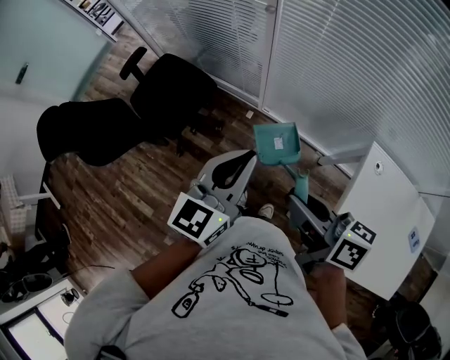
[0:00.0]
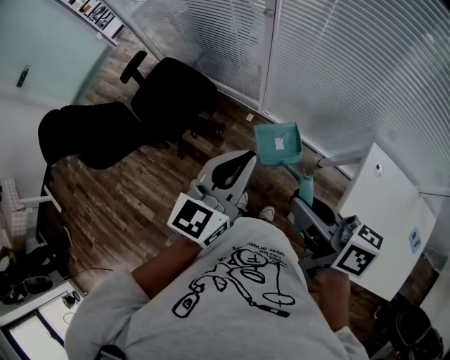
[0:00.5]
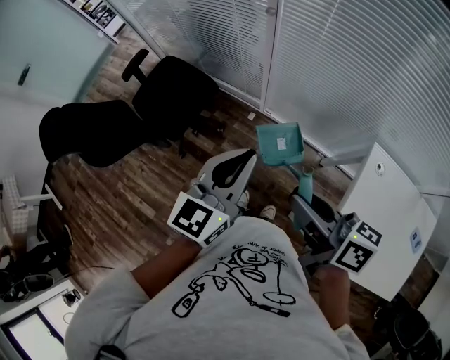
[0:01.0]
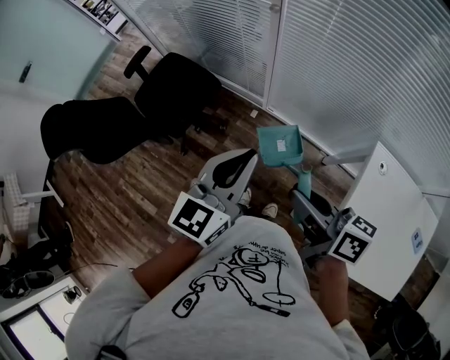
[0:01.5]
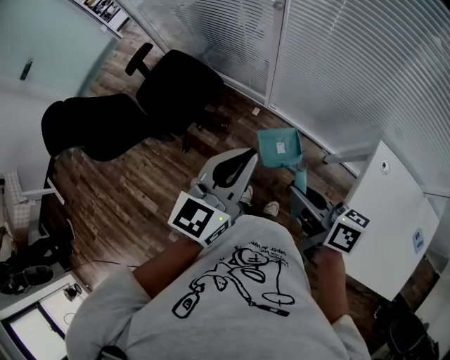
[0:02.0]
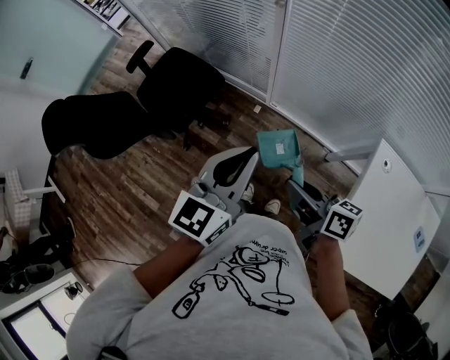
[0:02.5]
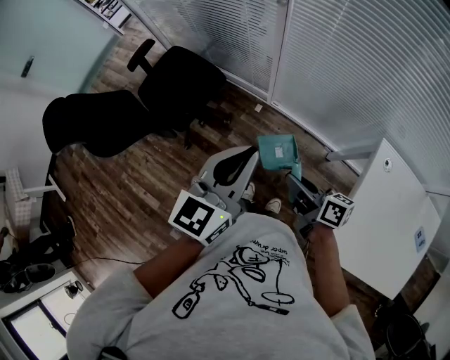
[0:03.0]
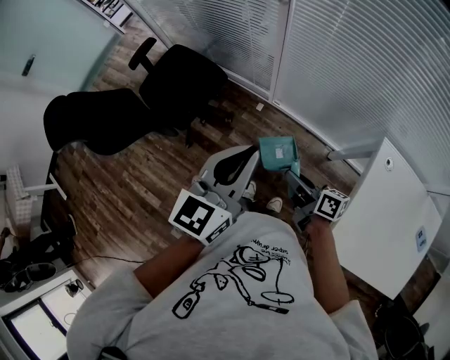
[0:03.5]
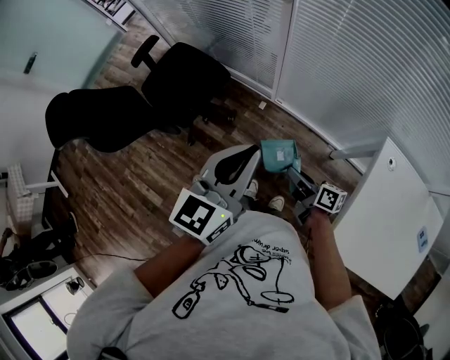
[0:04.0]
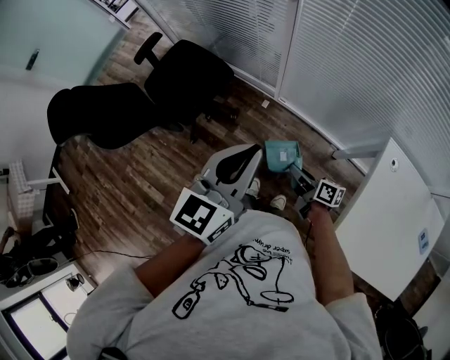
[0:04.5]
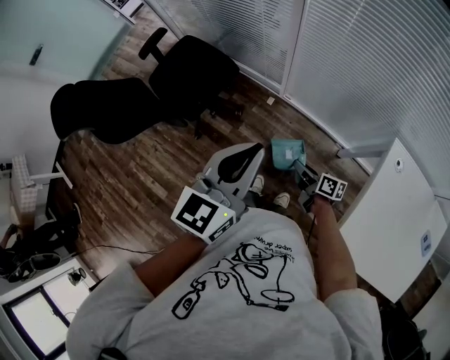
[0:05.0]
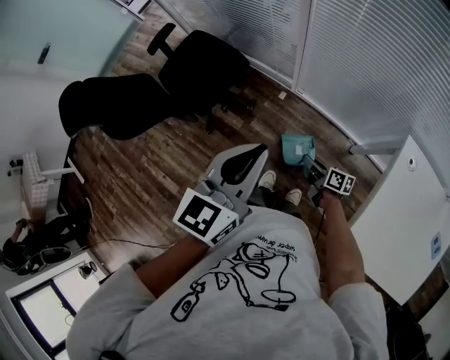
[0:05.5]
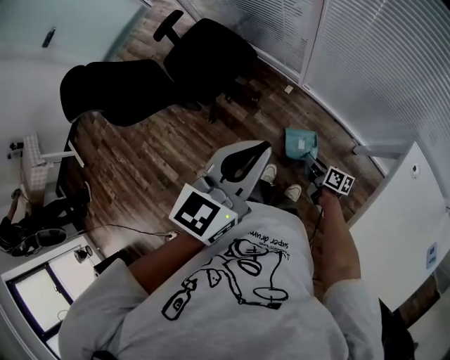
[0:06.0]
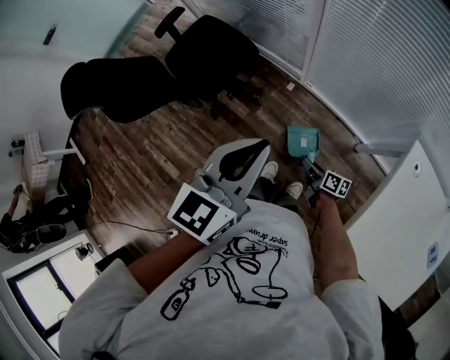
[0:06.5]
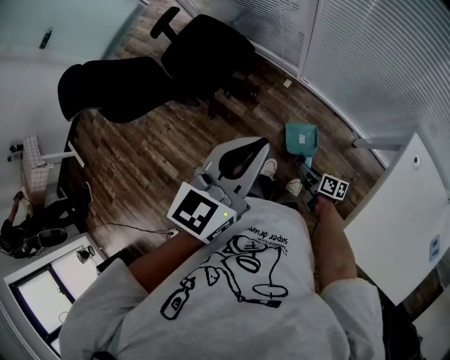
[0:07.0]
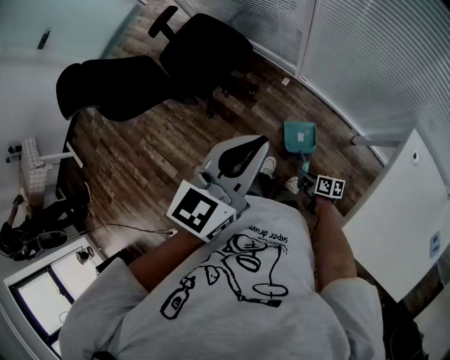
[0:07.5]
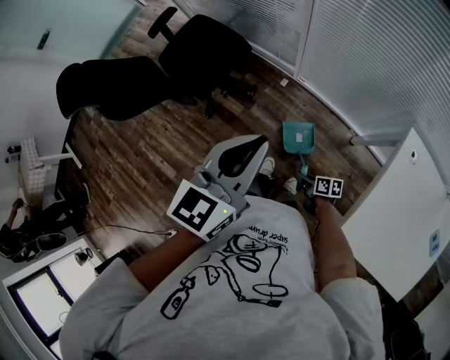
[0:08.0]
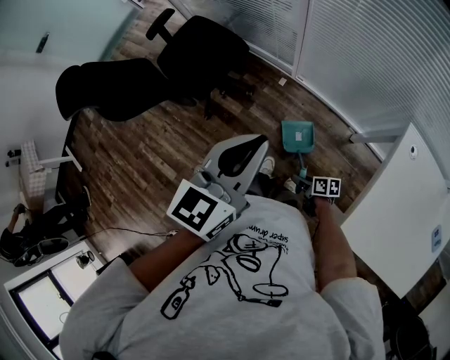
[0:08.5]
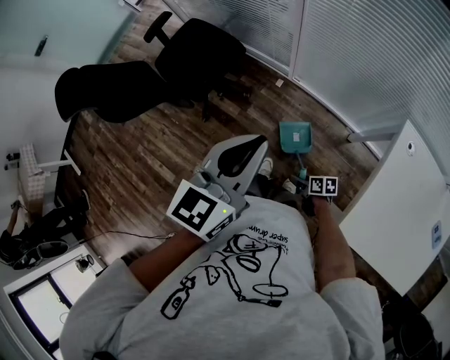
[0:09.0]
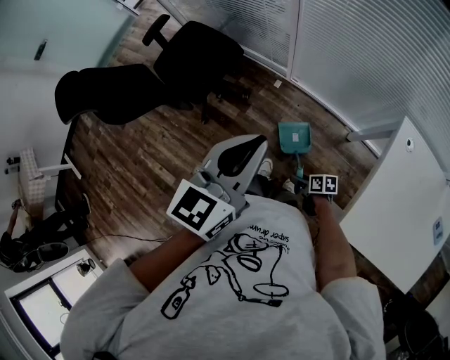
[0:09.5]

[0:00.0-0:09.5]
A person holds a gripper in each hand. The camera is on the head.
0:00.0 to 0:02.0: The right gripper travels downward by some 5 cm.
0:02.0 to 0:04.0: The right gripper goes approximately 20 cm downward.
0:04.0 to 0:05.5: The right gripper moves downward, about 10 cm.
0:05.5 to 0:07.5: The right gripper heads backward and downward, covering roughly 15 cm.
0:07.5 to 0:09.5: The right gripper shifts some 5 cm backward, and opens.

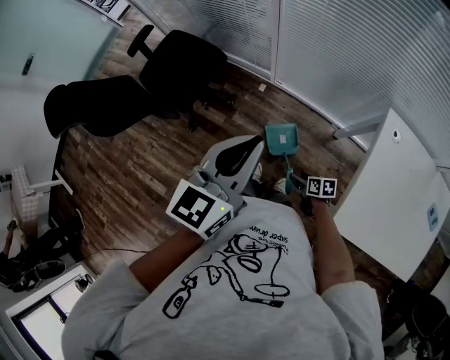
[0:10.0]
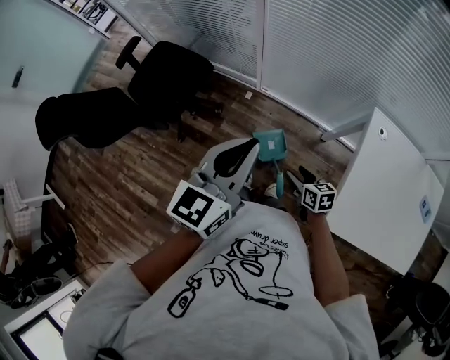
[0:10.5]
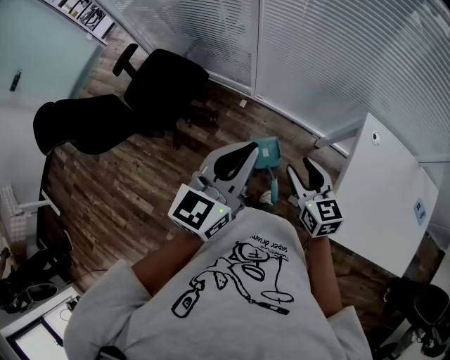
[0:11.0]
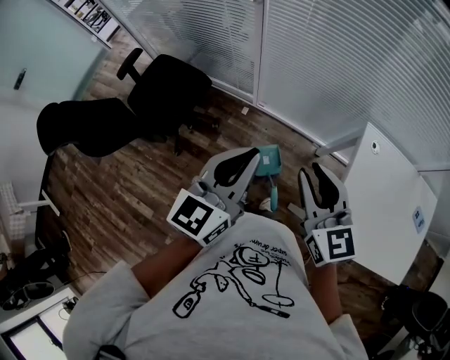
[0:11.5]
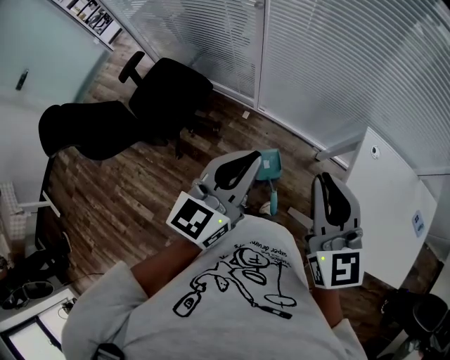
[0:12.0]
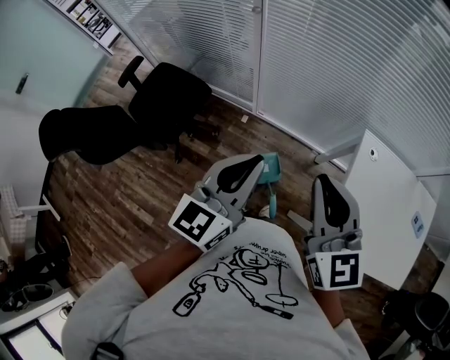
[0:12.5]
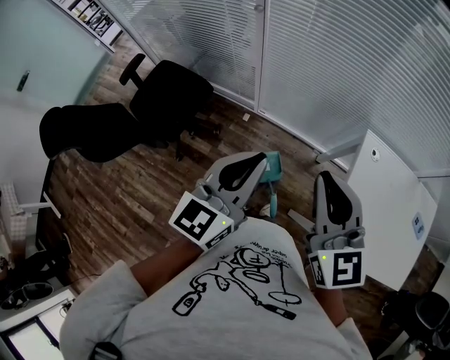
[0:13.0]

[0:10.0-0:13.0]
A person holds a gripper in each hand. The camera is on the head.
0:10.0 to 0:11.5: The right gripper moves upward, approximately 40 cm, tips its fingers upward by approximately 30 degrees, and closes its fingers.
0:11.5 to 0:13.0: The right gripper shifts about 10 cm upward, and closes its fingers.

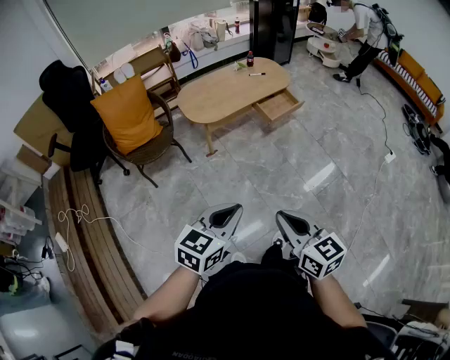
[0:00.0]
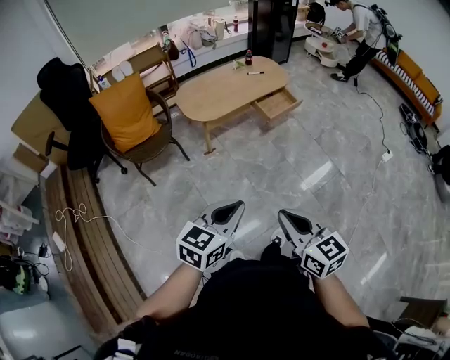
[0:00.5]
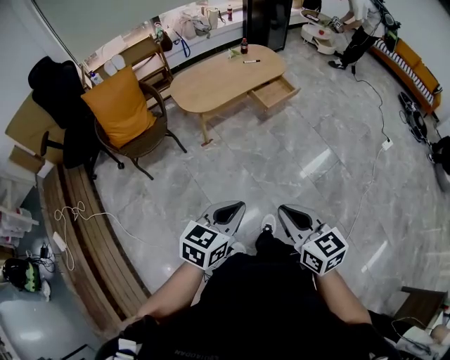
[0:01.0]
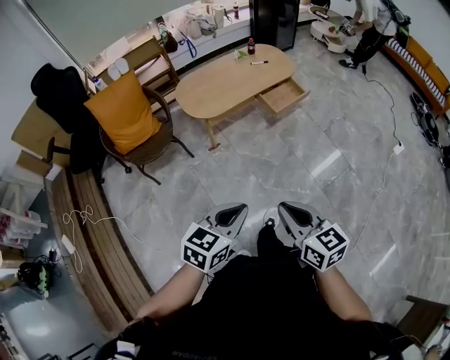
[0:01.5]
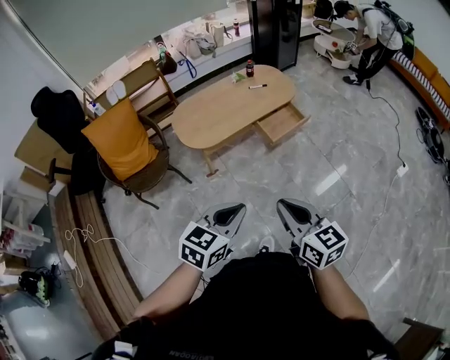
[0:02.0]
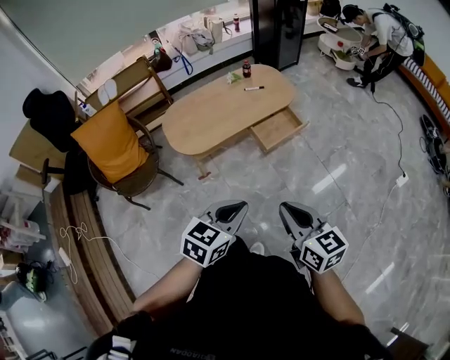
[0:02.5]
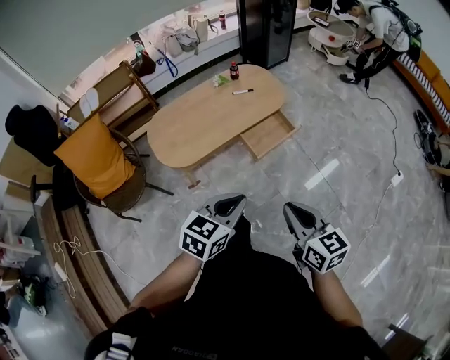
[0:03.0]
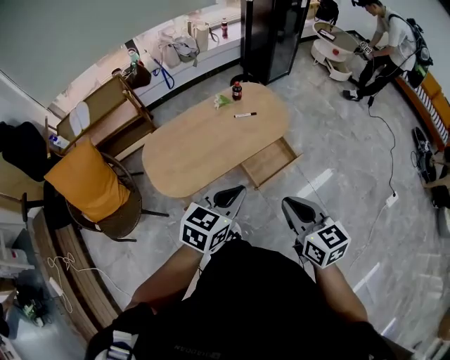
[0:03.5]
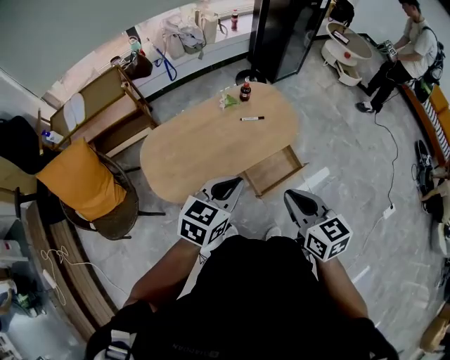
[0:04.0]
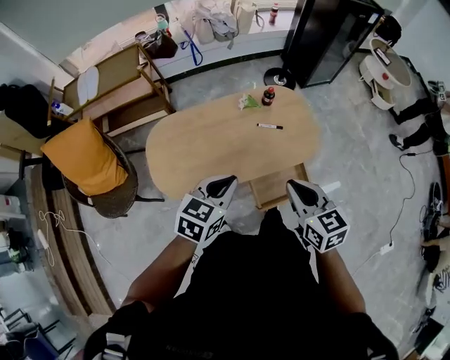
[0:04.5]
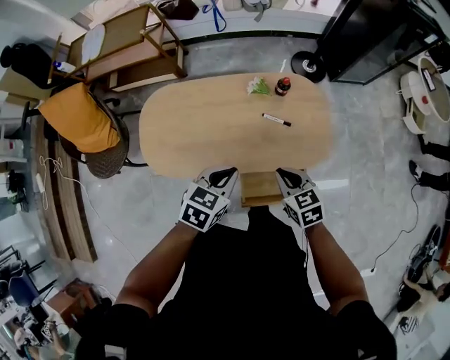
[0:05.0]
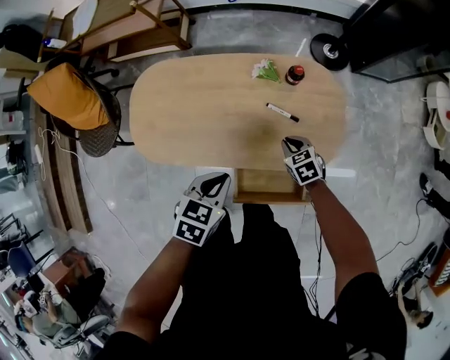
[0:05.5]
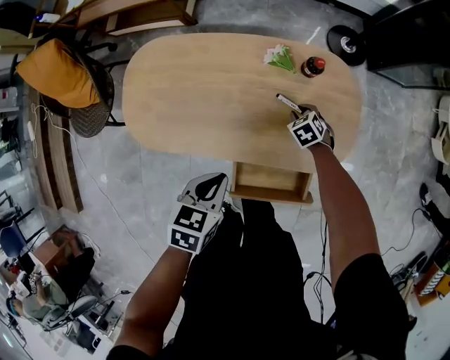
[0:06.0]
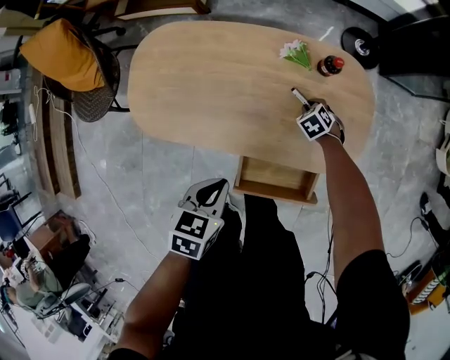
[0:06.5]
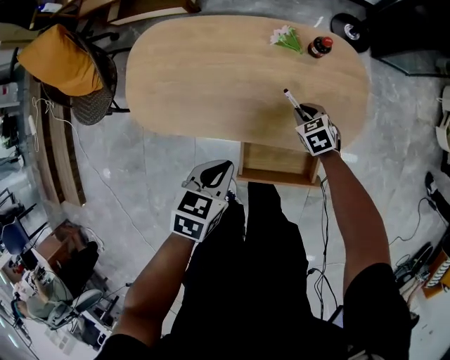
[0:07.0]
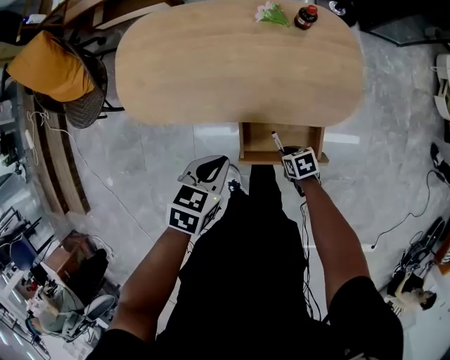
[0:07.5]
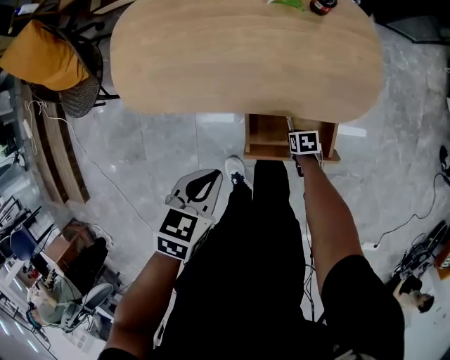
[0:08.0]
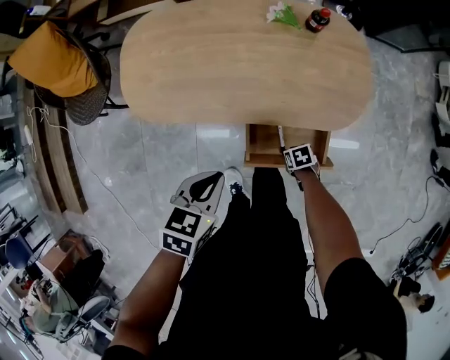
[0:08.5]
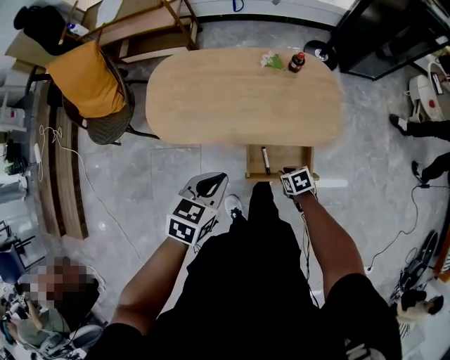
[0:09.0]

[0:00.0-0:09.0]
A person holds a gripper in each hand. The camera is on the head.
0:00.0 to 0:02.0: The grippers both shift forward by roughly 25 cm.
0:02.0 to 0:04.5: The pair of grippers is taken forward, approximately 60 cm.
0:04.5 to 0:07.0: The right gripper is displaced downward by some 40 cm, and points its fingers approximately 30 degrees further downward. The left gripper moves downward, about 25 cm, and turns by some 40 degrees.
0:07.0 to 0:09.0: The left gripper moves upward, roughly 15 cm, while the right gripper goes downward and returns, about 20 cm each way, and swivels about 20 degrees.

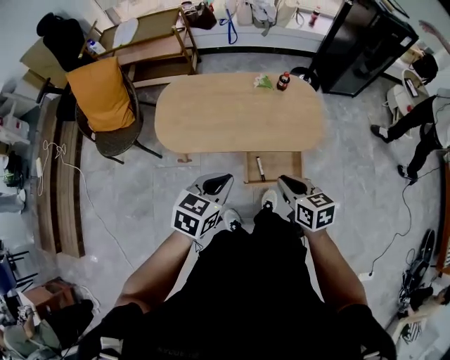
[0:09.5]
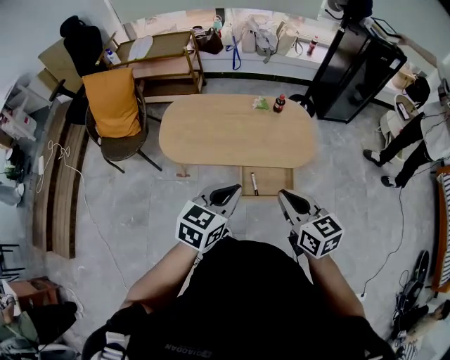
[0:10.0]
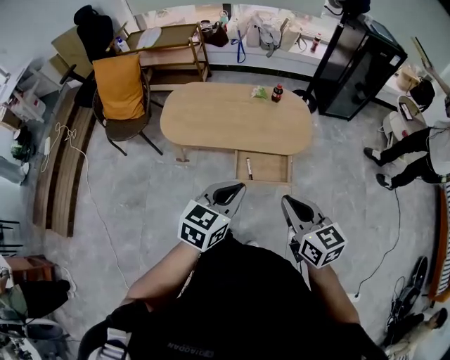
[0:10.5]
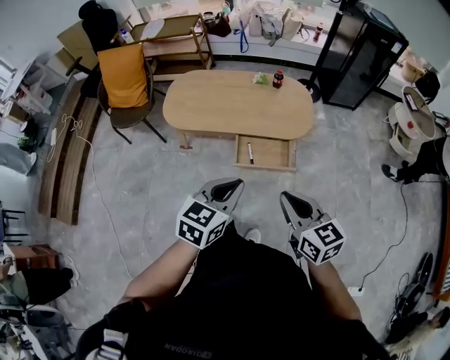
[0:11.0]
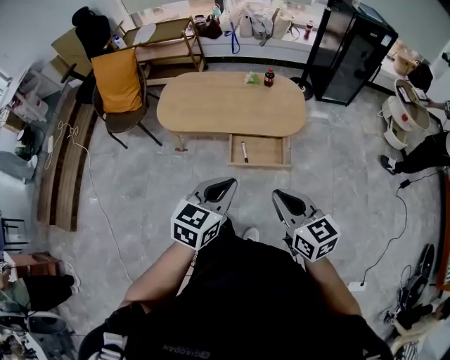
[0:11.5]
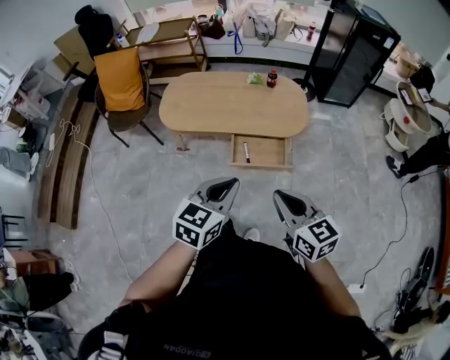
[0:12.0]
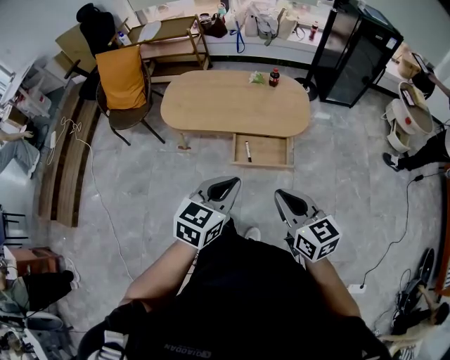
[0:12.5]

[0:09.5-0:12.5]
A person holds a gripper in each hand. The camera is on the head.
0:09.5 to 0:11.0: The right gripper shifts roughly 30 cm backward, upward and to the right, and turns by approximately 20 degrees; the left gripper goes about 25 cm backward and to the right.
0:11.0 to 0:12.5: The grippers move only a little.

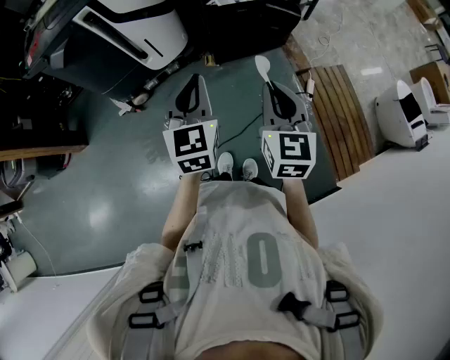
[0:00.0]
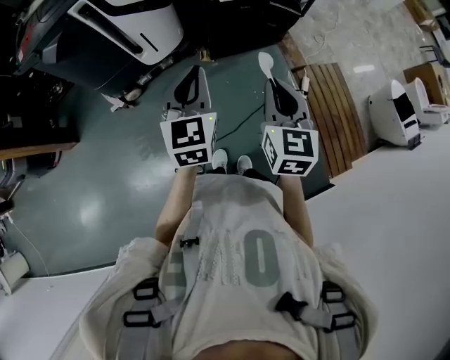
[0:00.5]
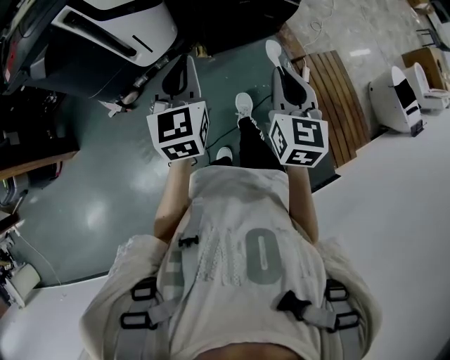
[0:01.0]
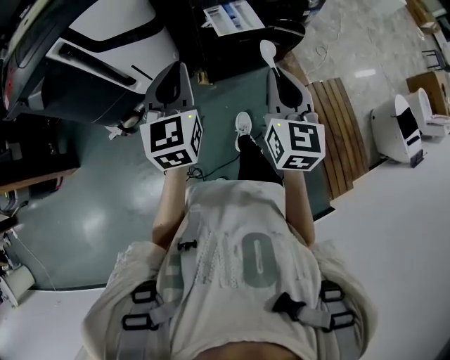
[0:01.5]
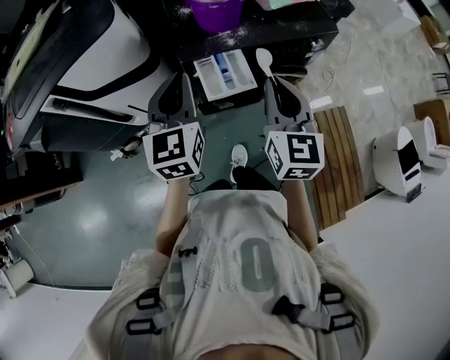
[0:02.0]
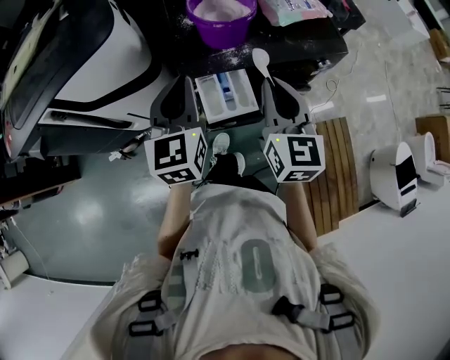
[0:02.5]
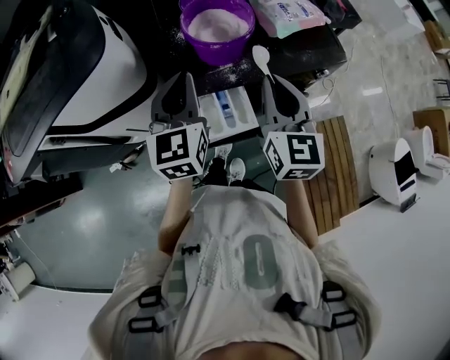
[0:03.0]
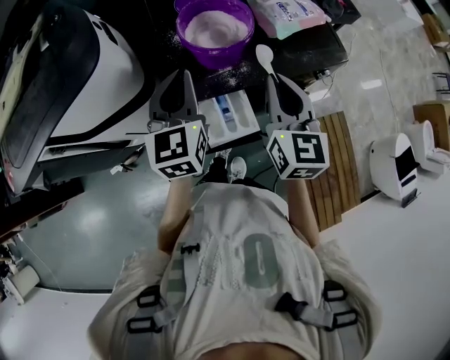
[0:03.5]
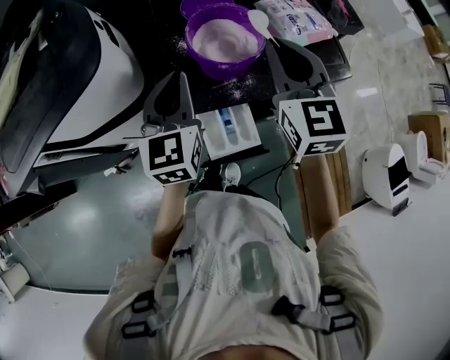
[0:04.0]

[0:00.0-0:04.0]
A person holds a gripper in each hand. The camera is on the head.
0:00.0 to 0:02.0: Both grippers travel together forward, roughly 40 cm.
0:02.0 to 0:04.0: The grippers both shift forward by roughly 20 cm.
